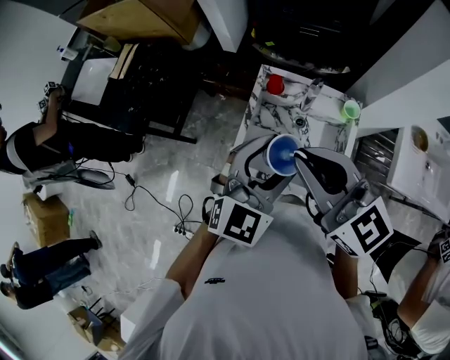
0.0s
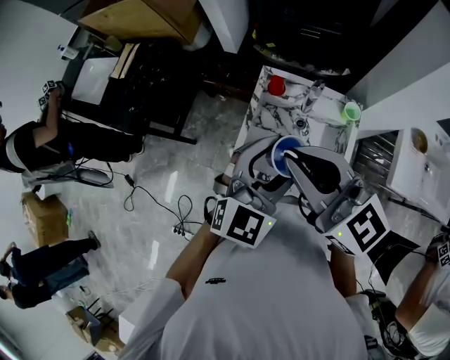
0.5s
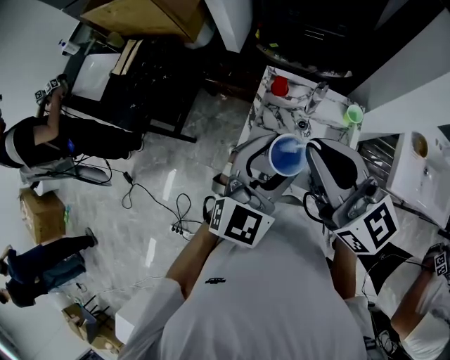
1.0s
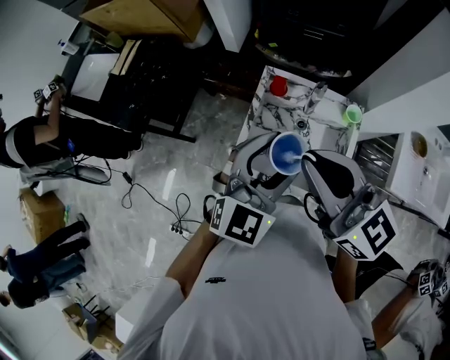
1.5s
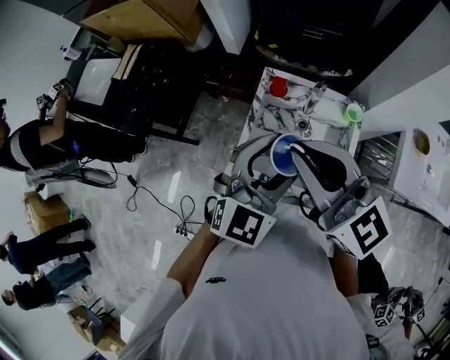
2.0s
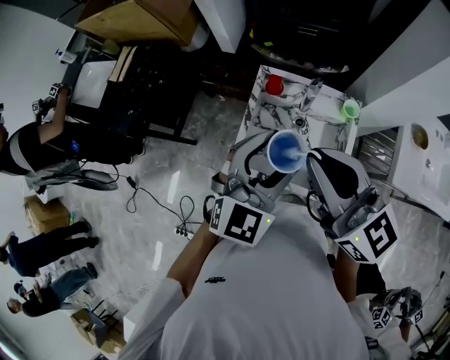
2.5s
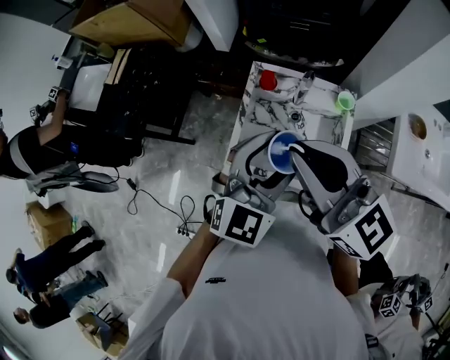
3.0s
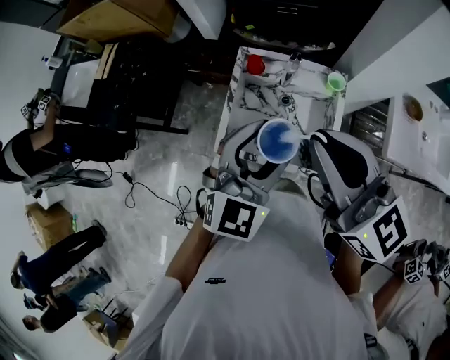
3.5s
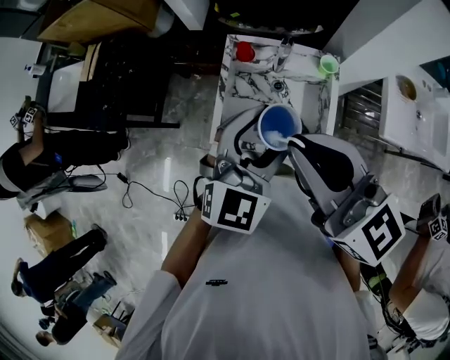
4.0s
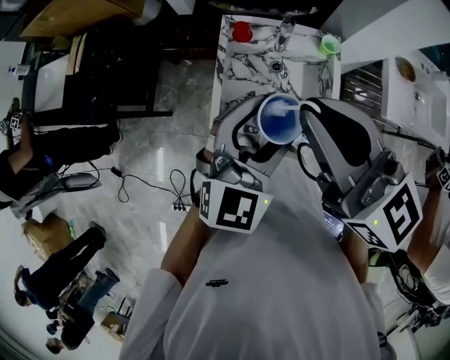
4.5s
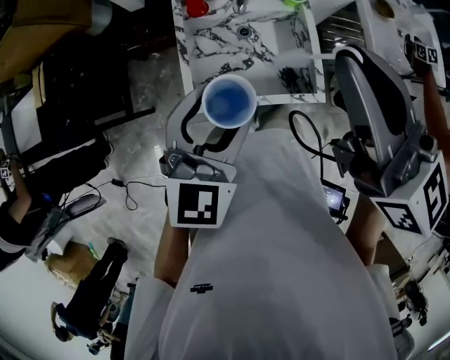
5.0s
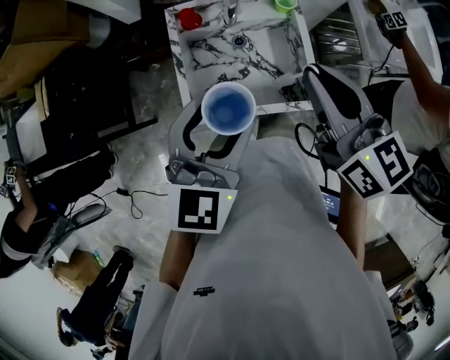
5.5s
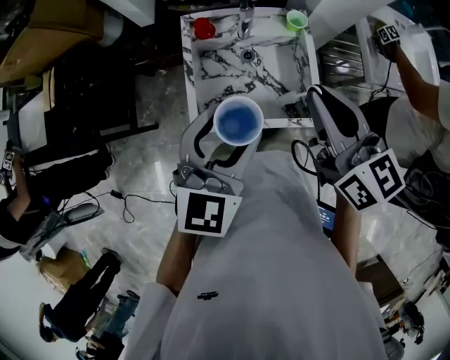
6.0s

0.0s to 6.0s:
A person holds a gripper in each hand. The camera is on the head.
0.0s to 2.0s: There are only small adjustments of the grippers.
2.0s to 4.0s: The right gripper is displaced backward by roughly 5 cm.
4.0s to 6.0s: The right gripper is displaced downward and to the right by some 15 cm, and rotates roughly 30 degrees, while the left gripper changes place by some 5 cm.

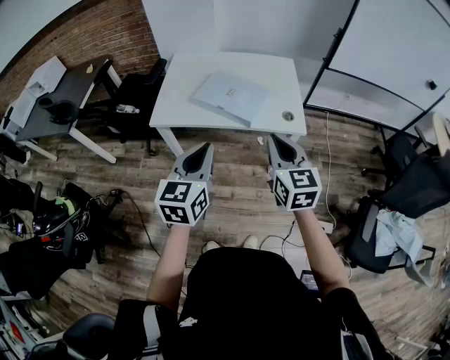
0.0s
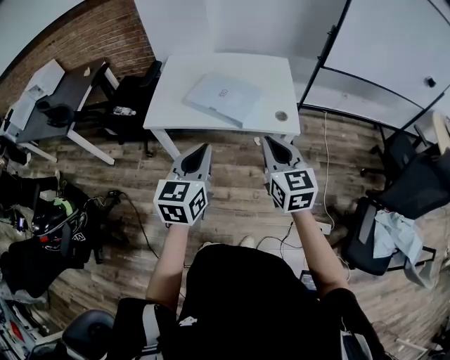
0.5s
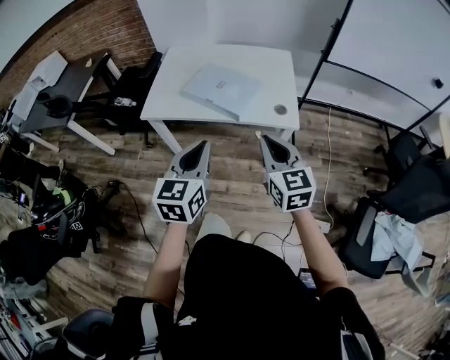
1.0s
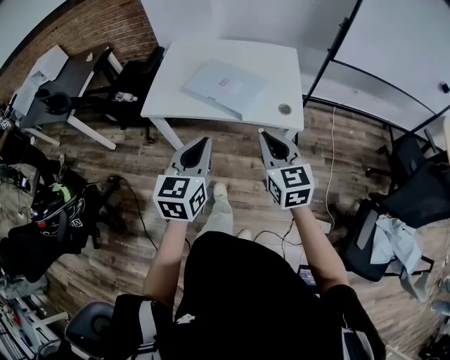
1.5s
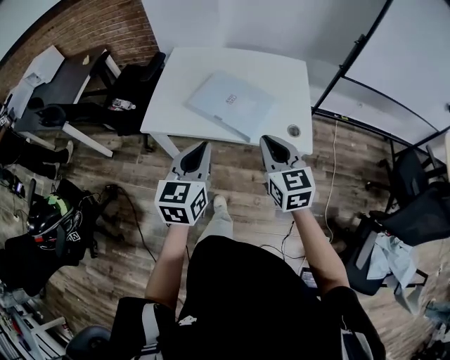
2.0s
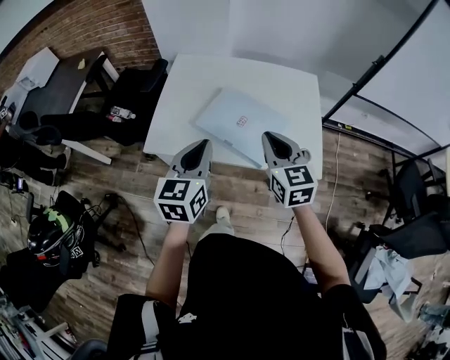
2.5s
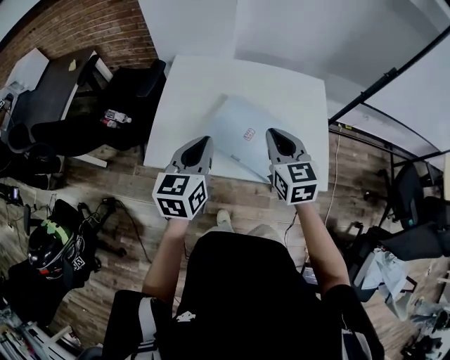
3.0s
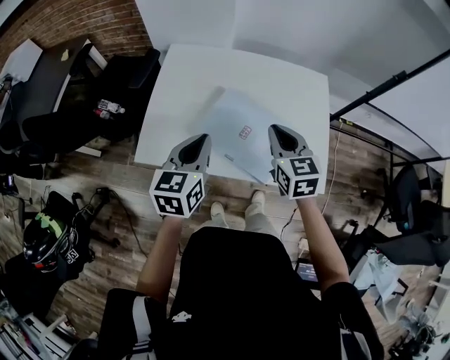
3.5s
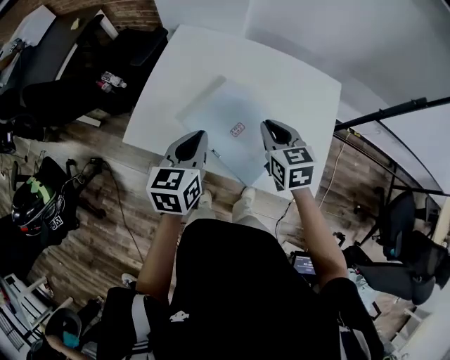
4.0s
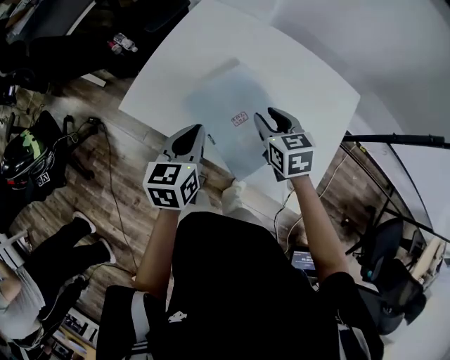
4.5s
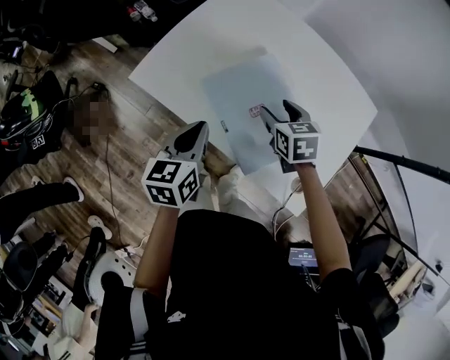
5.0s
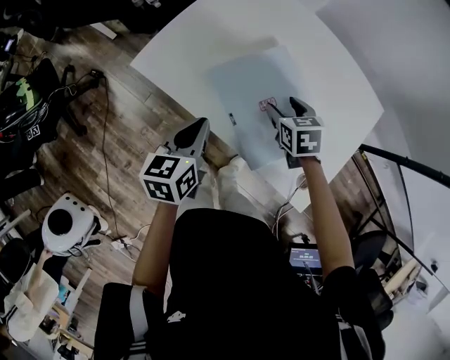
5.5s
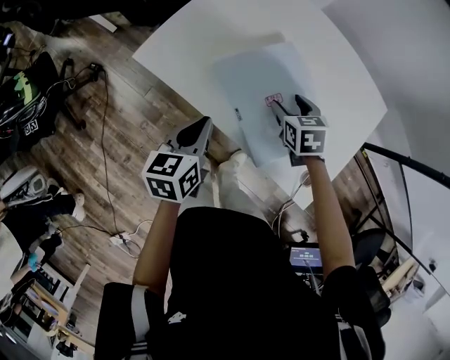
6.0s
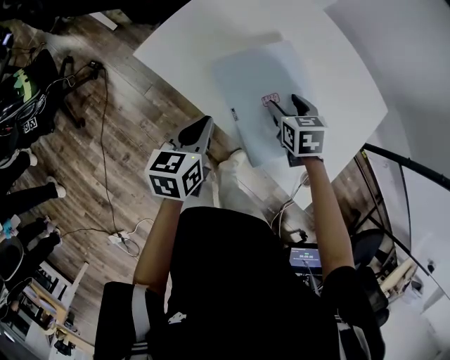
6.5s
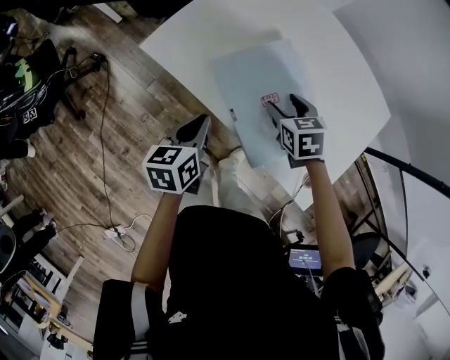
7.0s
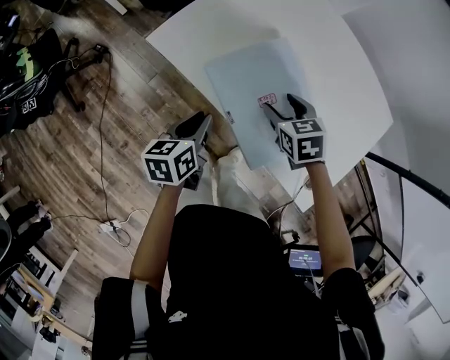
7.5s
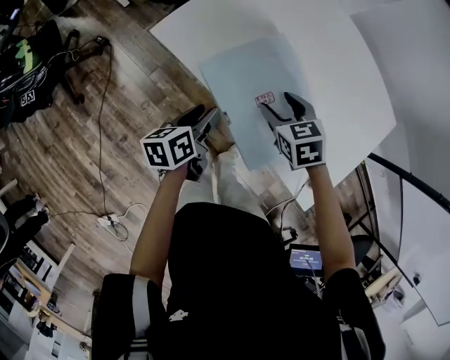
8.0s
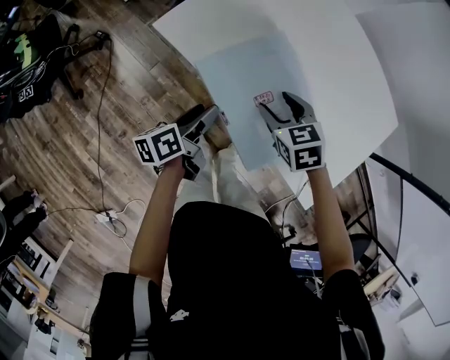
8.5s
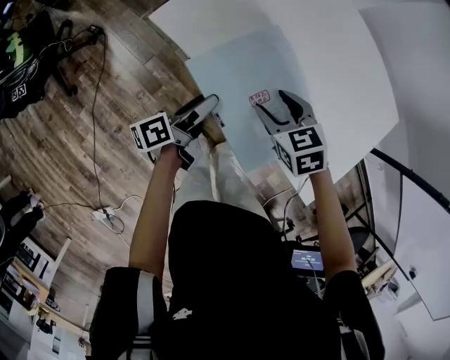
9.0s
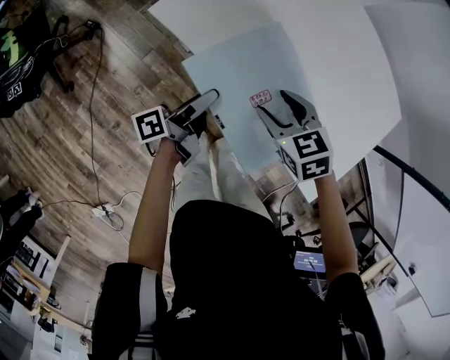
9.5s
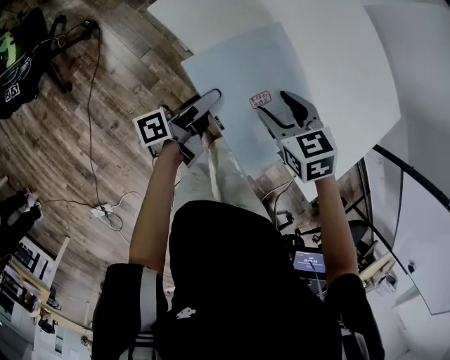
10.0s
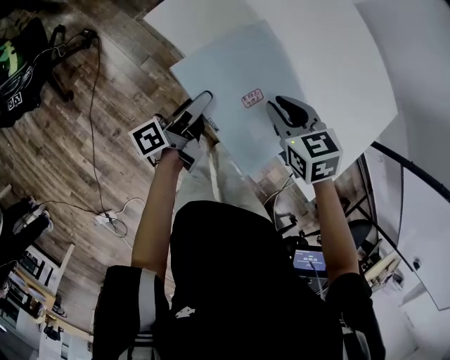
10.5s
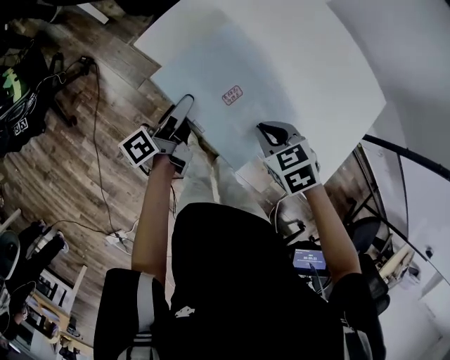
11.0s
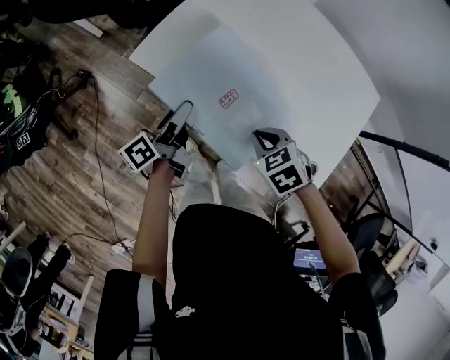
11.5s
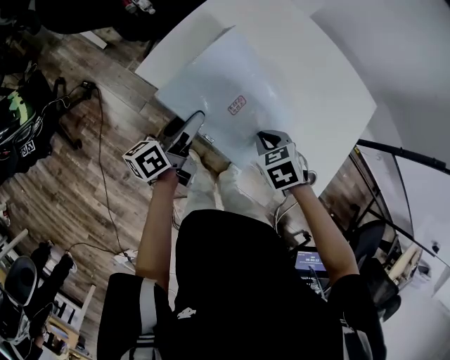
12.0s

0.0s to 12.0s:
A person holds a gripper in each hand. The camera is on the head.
0.0s to 2.0s: The right gripper moves forward and downward, about 15 cm. Meanwhile the left gripper heads forward, covering some 15 cm.
2.0s to 4.0s: The two grippers go some 30 cm forward. The right gripper rotates approximately 20 degrees.
4.0s to 6.0s: The right gripper goes some 15 cm downward, turns by about 30 degrees, and opens up. The left gripper travels downward, backward and to the left by about 15 cm, and changes its angle by roughly 20 degrees.
6.0s to 8.0s: The left gripper shifts some 10 cm downward, turns by approximately 20 degrees, and opens its fingers. Meanwhile the right gripper heads to the left, covering about 10 cm.
8.0s to 10.0s: The left gripper changes its angle by some 40 degrees, and opens its fingers.
10.0s to 12.0s: The left gripper shifts some 10 cm upward and forward, and turns by roughly 30 degrees. The right gripper closes up.

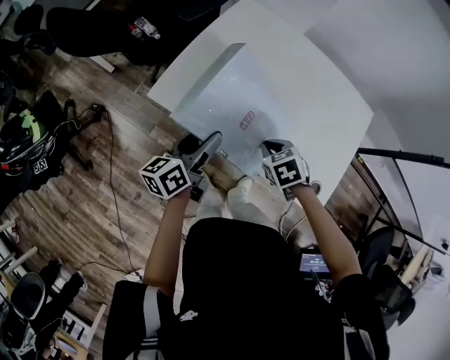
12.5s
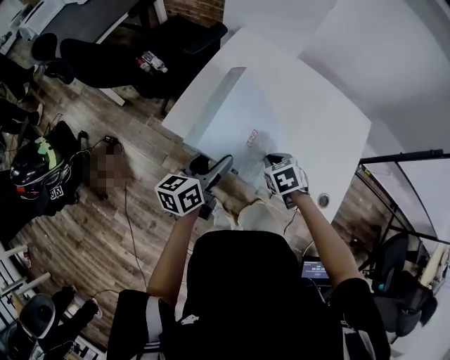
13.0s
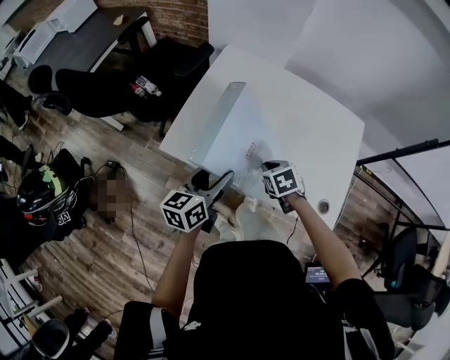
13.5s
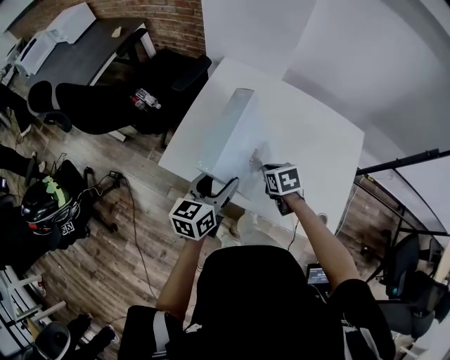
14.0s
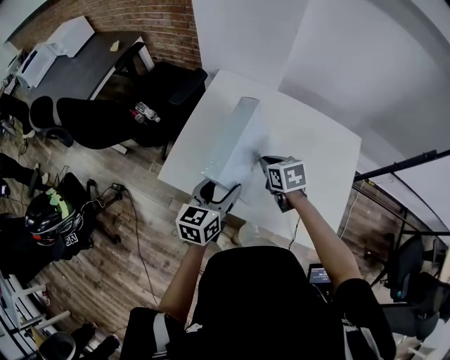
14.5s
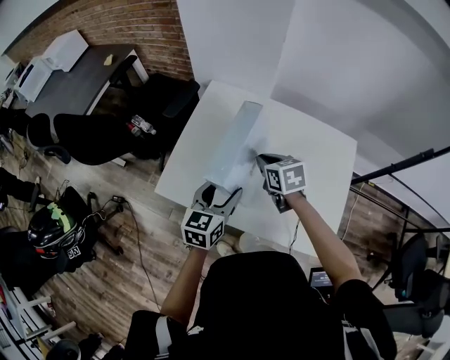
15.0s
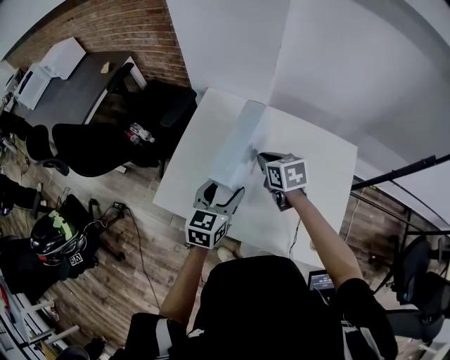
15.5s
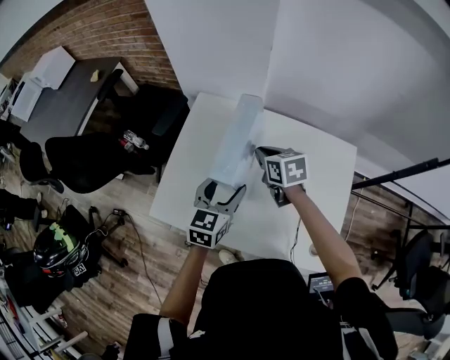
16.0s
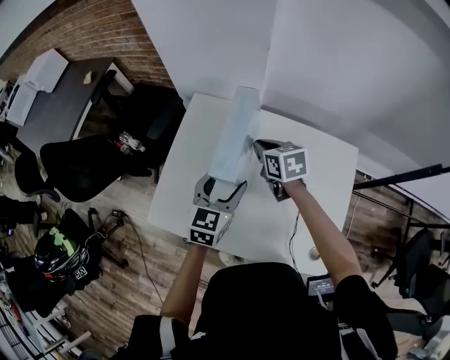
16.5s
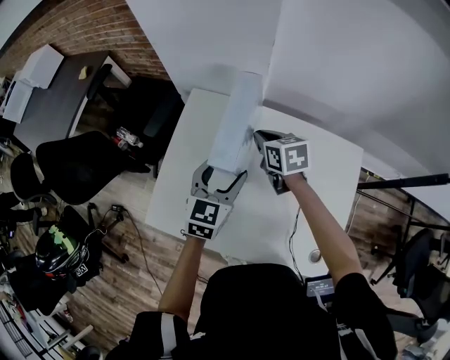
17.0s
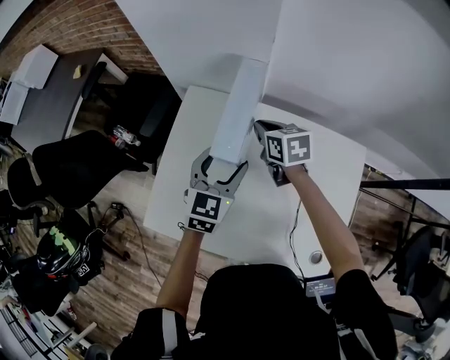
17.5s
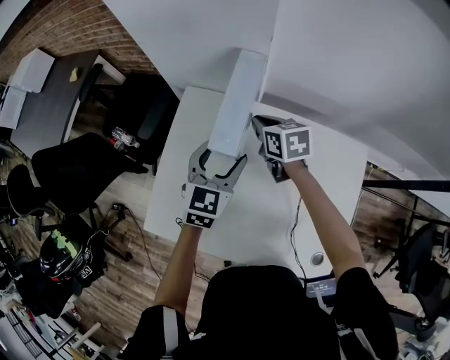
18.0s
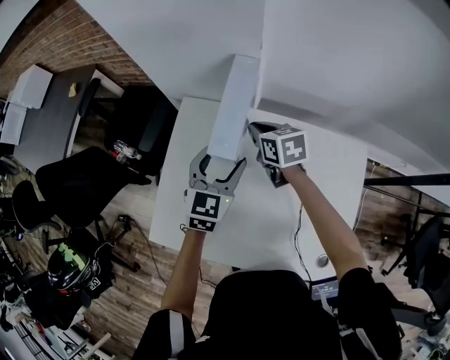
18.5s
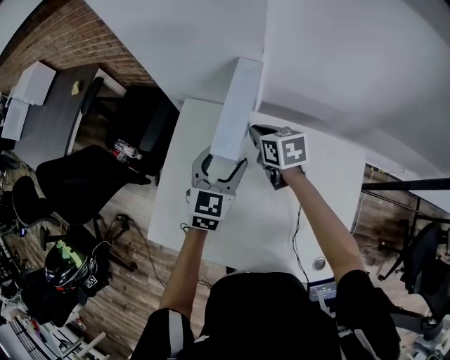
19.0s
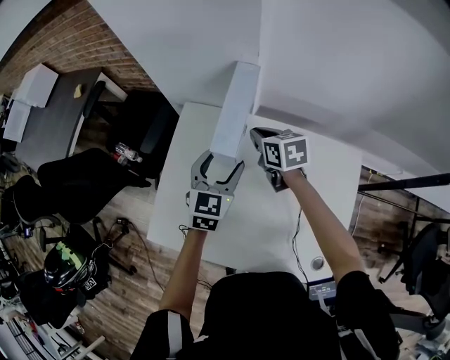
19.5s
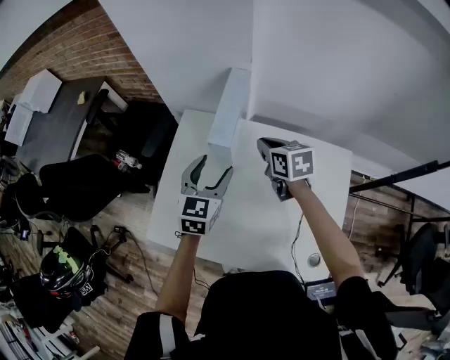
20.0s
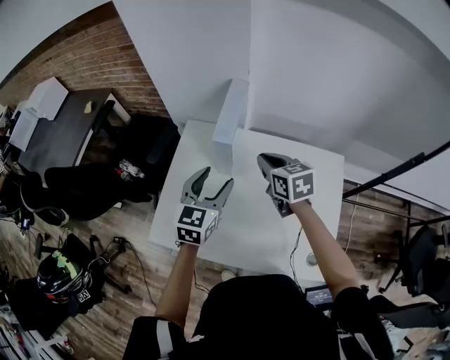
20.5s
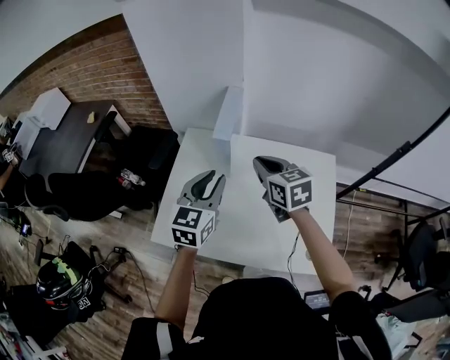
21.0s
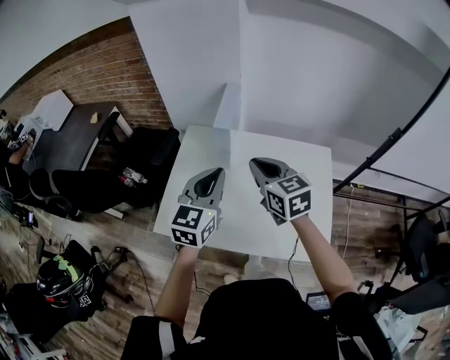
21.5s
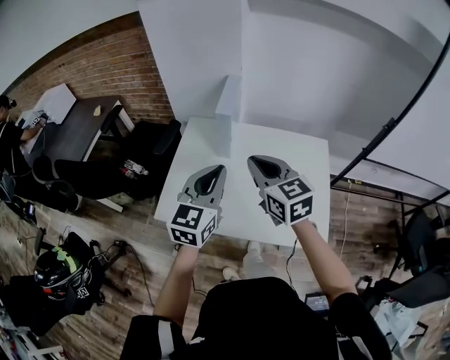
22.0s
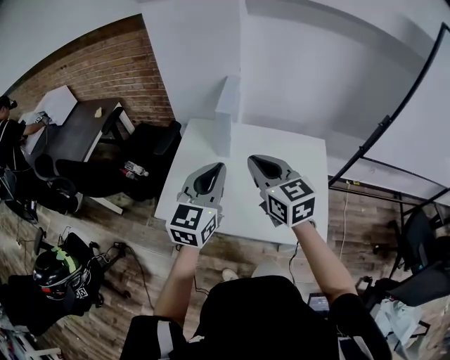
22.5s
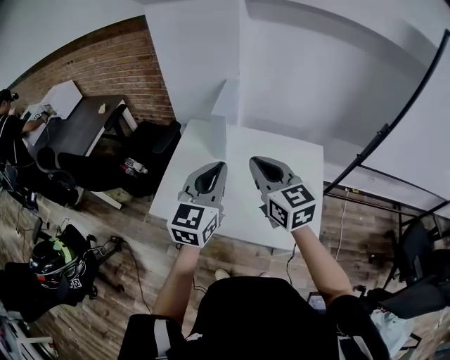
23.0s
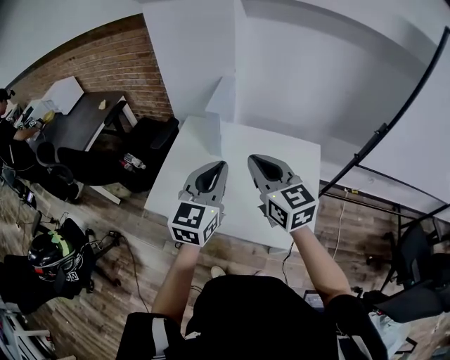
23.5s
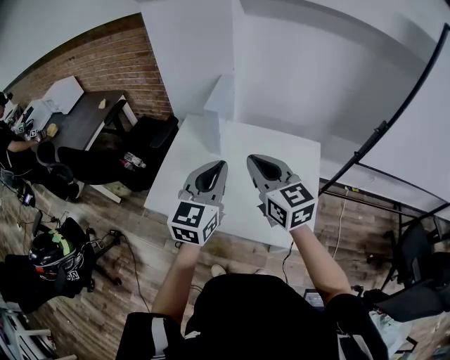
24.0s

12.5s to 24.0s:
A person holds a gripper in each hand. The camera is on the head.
12.5s to 14.5s: The right gripper moves forward and upward, roughly 15 cm, and swivels about 30 degrees; the left gripper heads to the right, upward and forward, covering about 10 cm, and rotates roughly 30 degrees.
14.5s to 16.5s: The left gripper is displaced forward and to the right by approximately 20 cm; the right gripper travels forward by about 20 cm.
16.5s to 18.5s: The two grippers go some 10 cm forward.
18.5s to 20.0s: The left gripper shifts by roughly 5 cm. The right gripper heads backward and upward, covering some 10 cm.
20.0s to 22.0s: Both grippers move backward and upward, some 30 cm. The left gripper closes its fingers, while the right gripper changes its angle by about 30 degrees.
22.0s to 24.0s: Both grippers move to the right, approximately 5 cm.
